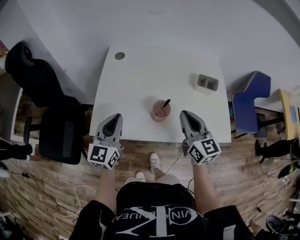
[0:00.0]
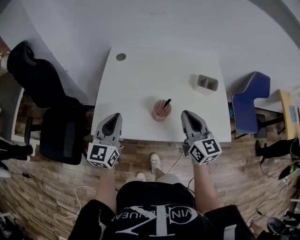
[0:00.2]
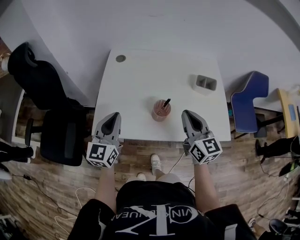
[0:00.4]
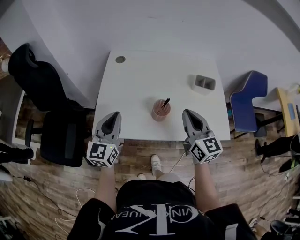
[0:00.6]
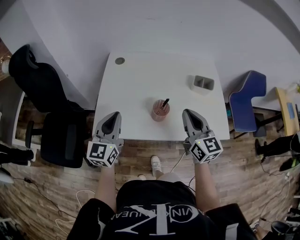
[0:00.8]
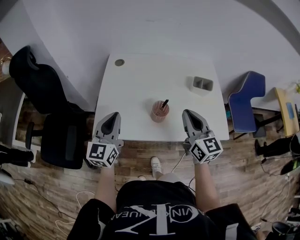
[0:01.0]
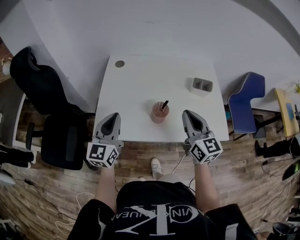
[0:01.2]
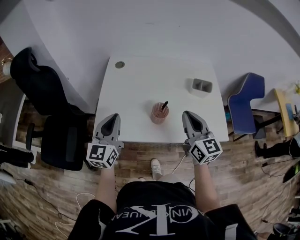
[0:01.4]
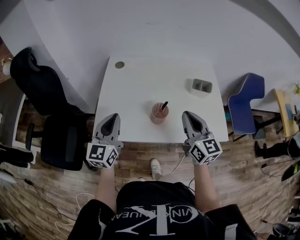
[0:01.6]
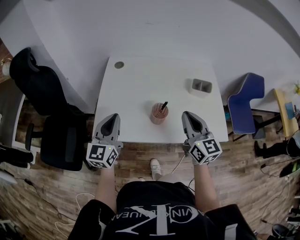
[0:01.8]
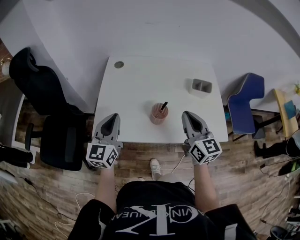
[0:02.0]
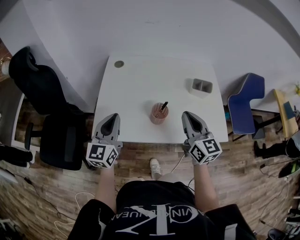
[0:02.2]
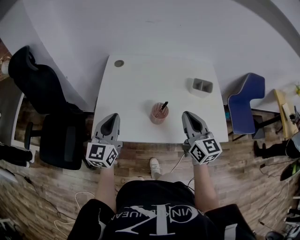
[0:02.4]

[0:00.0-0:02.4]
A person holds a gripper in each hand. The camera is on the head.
0:00.0 to 0:01.2: The grippers stay close to where they were, moving slightly.
0:01.2 to 0:02.4: Both grippers stay put.

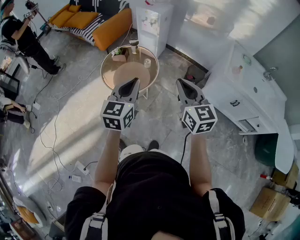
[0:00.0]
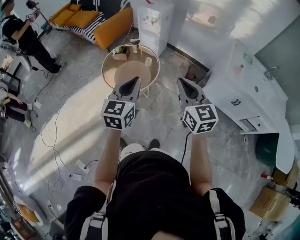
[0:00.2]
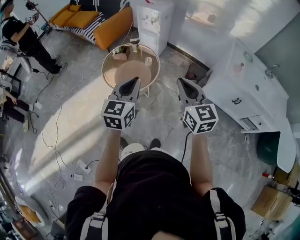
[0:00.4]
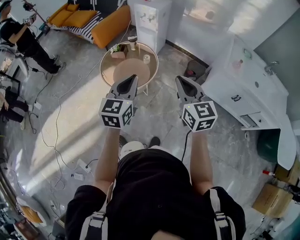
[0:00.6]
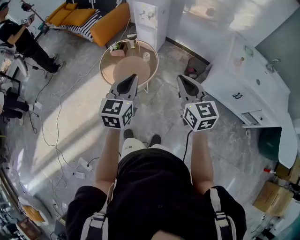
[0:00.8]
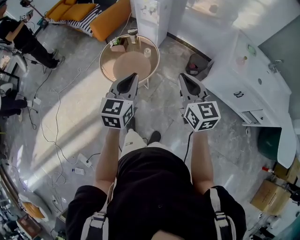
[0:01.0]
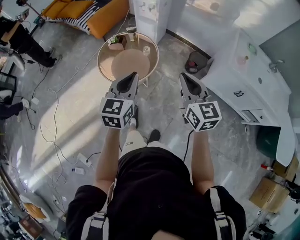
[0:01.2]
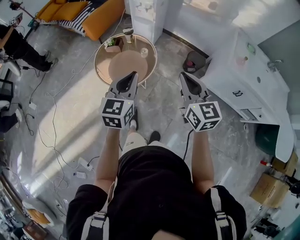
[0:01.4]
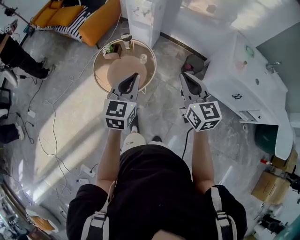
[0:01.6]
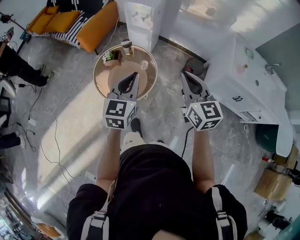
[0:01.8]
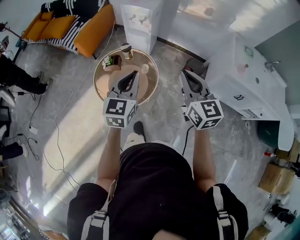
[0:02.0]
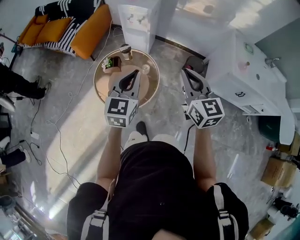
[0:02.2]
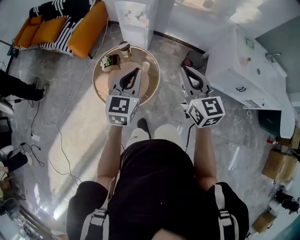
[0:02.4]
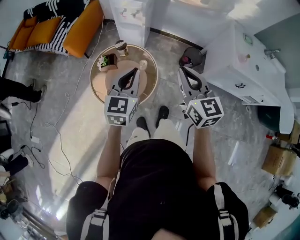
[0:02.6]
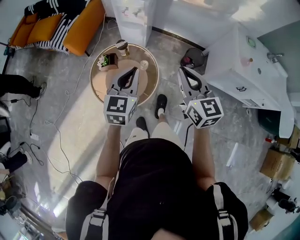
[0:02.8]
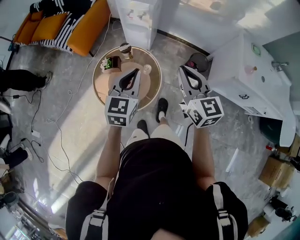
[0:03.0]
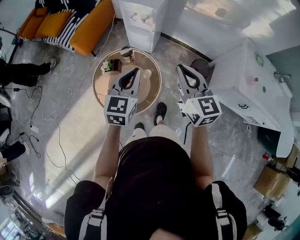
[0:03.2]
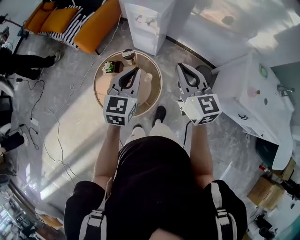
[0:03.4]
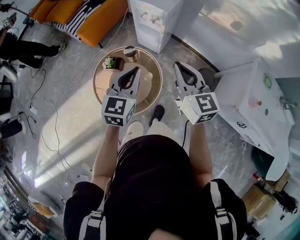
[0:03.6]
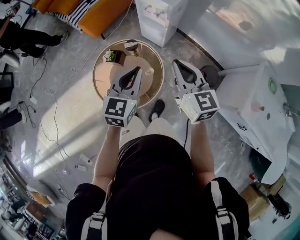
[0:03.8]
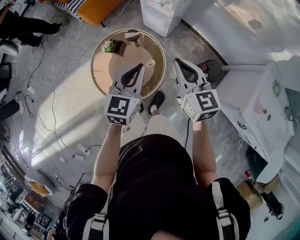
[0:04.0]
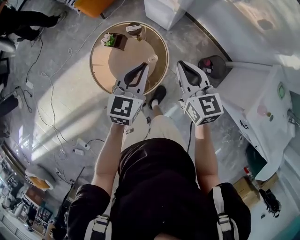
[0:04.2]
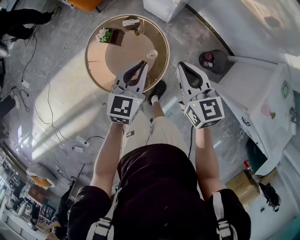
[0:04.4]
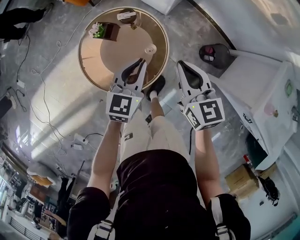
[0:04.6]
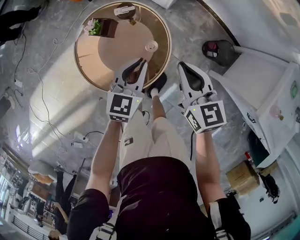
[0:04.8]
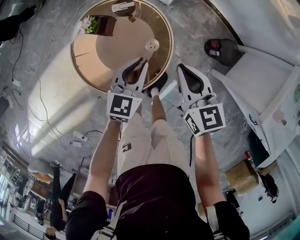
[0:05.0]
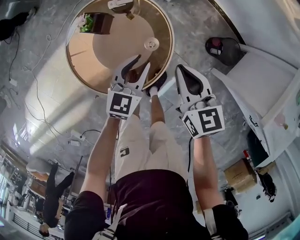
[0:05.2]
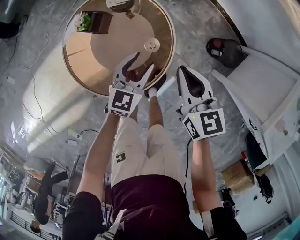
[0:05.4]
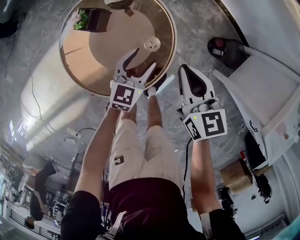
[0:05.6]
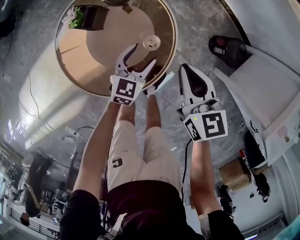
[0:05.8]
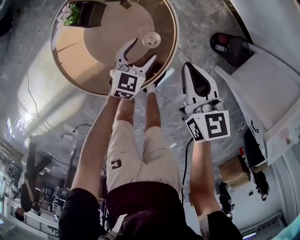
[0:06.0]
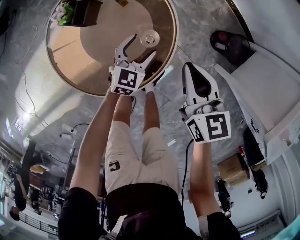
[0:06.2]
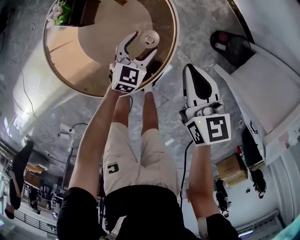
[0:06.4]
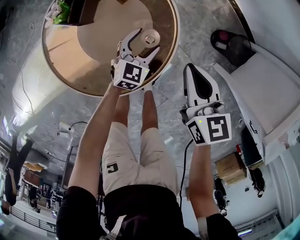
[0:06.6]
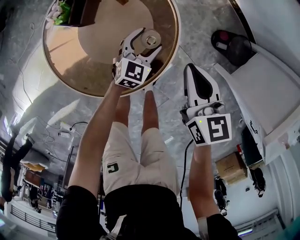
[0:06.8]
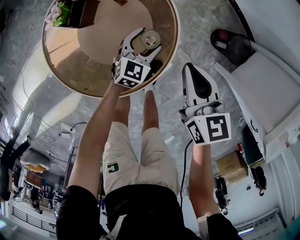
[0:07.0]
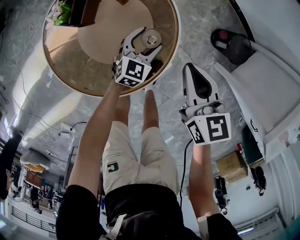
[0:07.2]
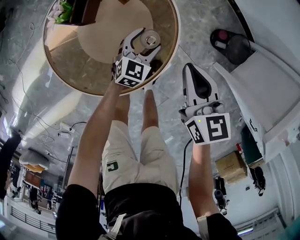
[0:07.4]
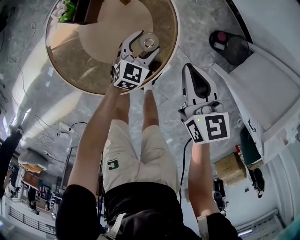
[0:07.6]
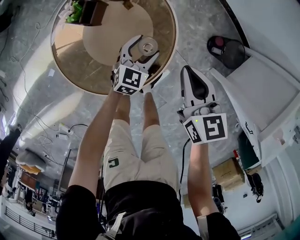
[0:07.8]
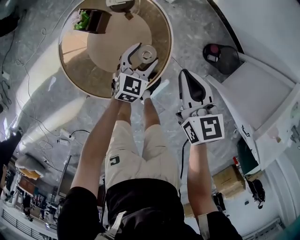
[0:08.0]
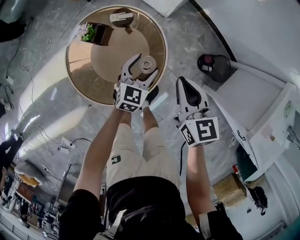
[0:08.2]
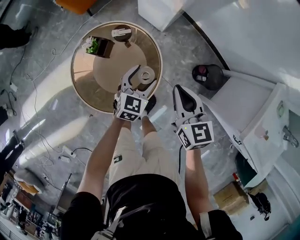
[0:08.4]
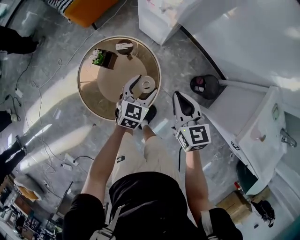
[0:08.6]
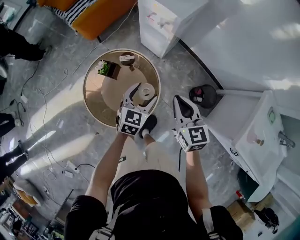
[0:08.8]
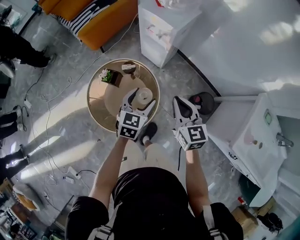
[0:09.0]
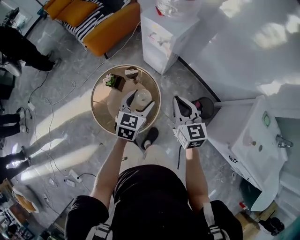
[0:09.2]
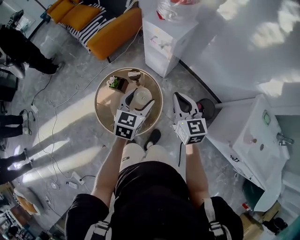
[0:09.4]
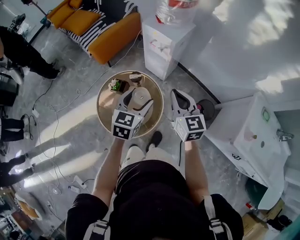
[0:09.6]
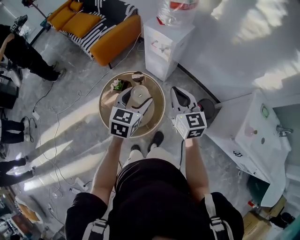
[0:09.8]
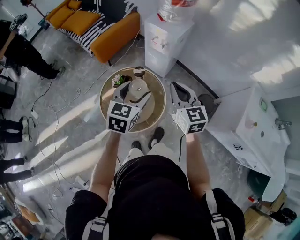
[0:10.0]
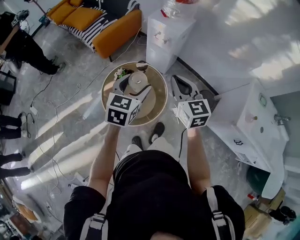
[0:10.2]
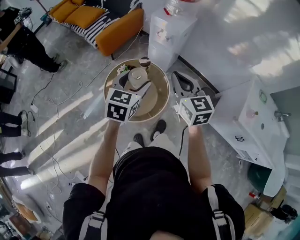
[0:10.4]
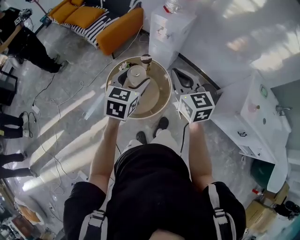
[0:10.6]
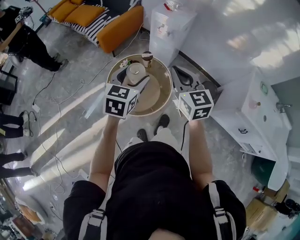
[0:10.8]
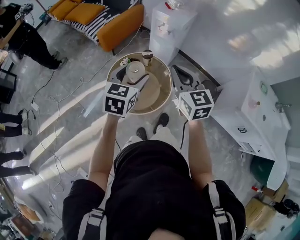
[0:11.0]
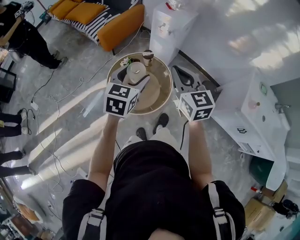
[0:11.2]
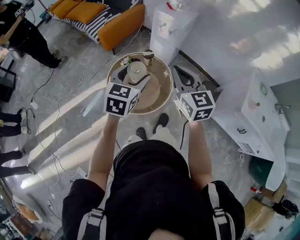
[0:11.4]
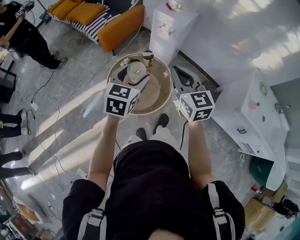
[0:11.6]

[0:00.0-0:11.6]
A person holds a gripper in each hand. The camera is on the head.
0:00.0 to 0:01.4: Both grippers move forward, about 5 cm.
0:01.4 to 0:02.8: The left gripper is displaced forward by approximately 25 cm; the right gripper shifts about 20 cm forward and to the left.
0:02.8 to 0:04.4: The right gripper goes some 25 cm forward and downward, and rotates about 30 degrees; the left gripper heads downward and forward, covering roughly 20 cm.
0:04.4 to 0:05.8: The left gripper heads downward, covering about 30 cm, and opens up; the right gripper heads downward, covering roughly 20 cm.
0:05.8 to 0:07.2: The left gripper heads downward, covering approximately 10 cm. The right gripper changes place by approximately 5 cm.
0:07.2 to 0:08.8: Both grippers move upward, about 30 cm.
0:08.8 to 0:10.2: Both grippers move upward, to the left and backward, about 25 cm.
0:10.2 to 0:11.6: The right gripper heads backward and to the left, covering approximately 10 cm, while the left gripper is displaced to the left and backward by about 10 cm.

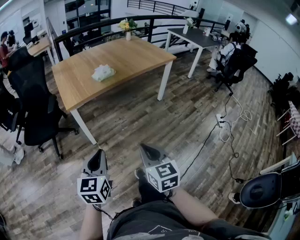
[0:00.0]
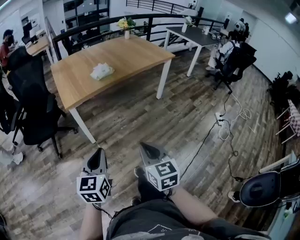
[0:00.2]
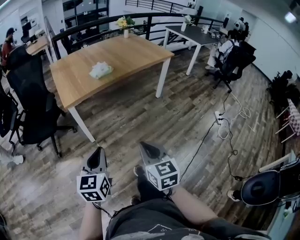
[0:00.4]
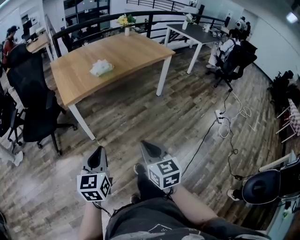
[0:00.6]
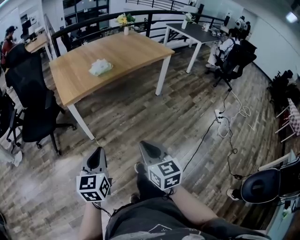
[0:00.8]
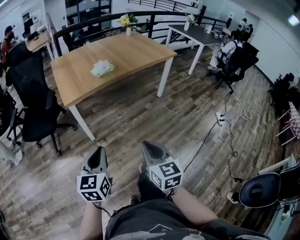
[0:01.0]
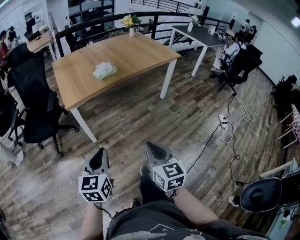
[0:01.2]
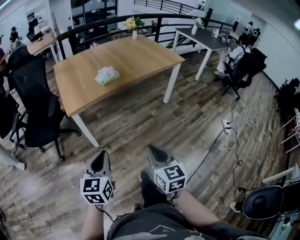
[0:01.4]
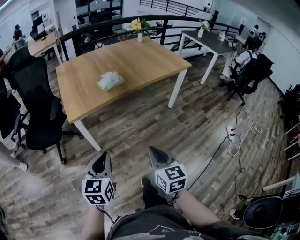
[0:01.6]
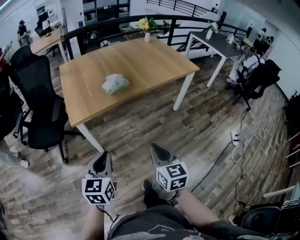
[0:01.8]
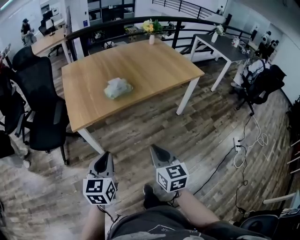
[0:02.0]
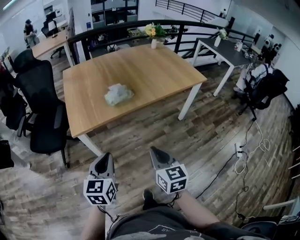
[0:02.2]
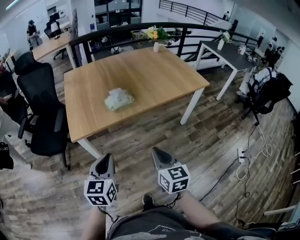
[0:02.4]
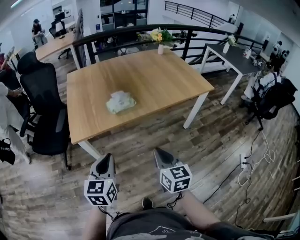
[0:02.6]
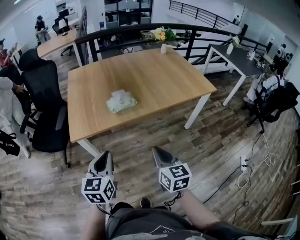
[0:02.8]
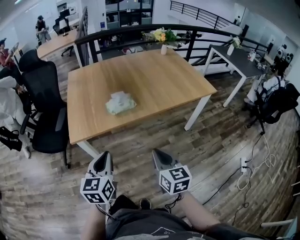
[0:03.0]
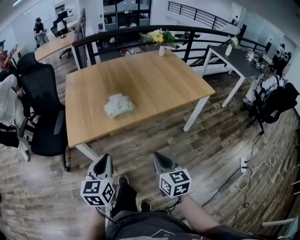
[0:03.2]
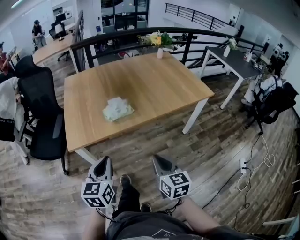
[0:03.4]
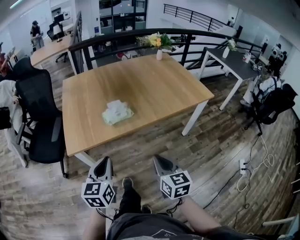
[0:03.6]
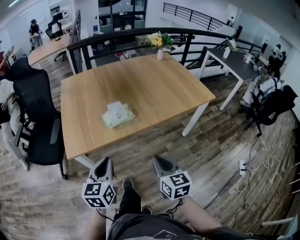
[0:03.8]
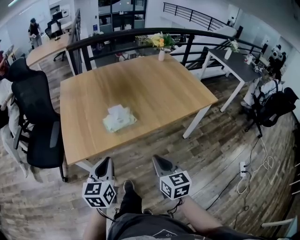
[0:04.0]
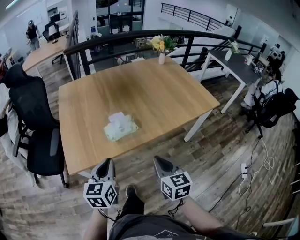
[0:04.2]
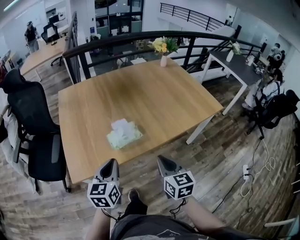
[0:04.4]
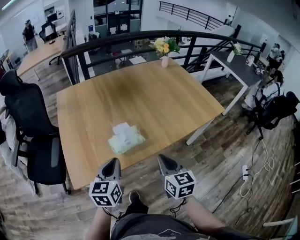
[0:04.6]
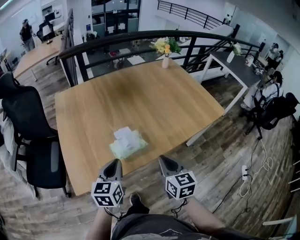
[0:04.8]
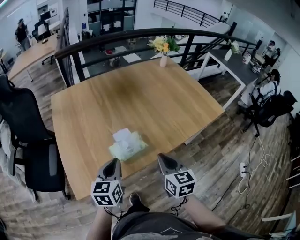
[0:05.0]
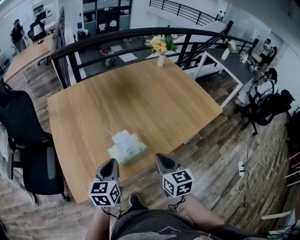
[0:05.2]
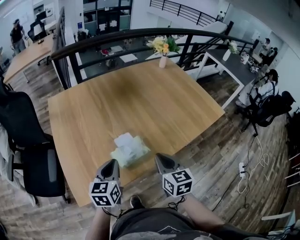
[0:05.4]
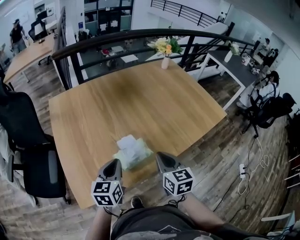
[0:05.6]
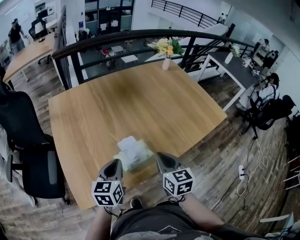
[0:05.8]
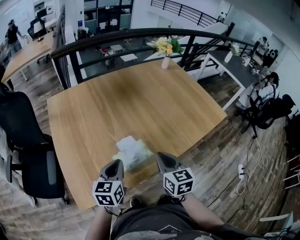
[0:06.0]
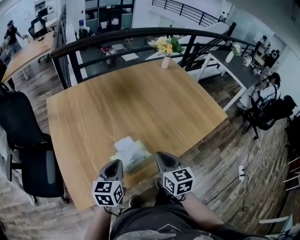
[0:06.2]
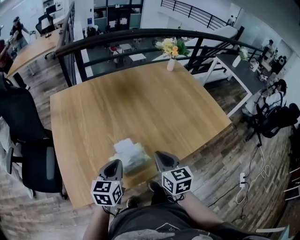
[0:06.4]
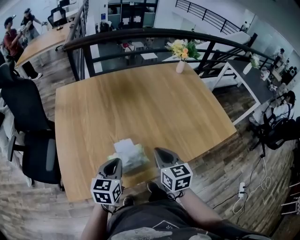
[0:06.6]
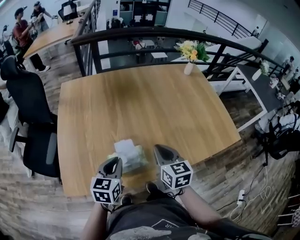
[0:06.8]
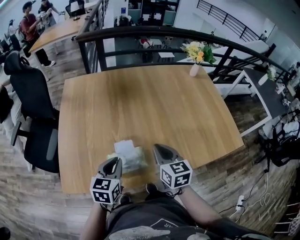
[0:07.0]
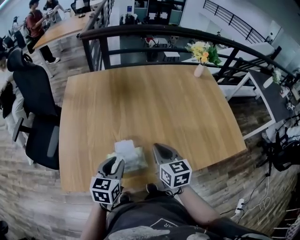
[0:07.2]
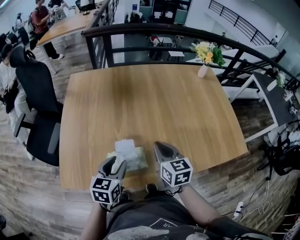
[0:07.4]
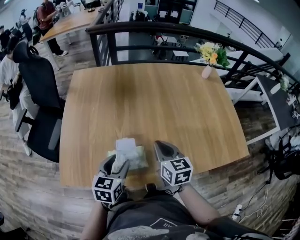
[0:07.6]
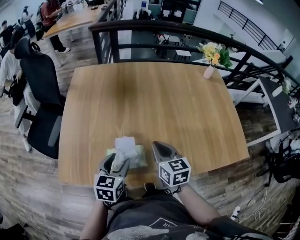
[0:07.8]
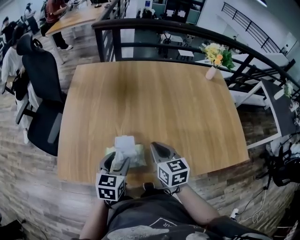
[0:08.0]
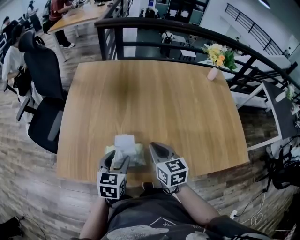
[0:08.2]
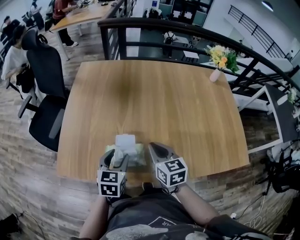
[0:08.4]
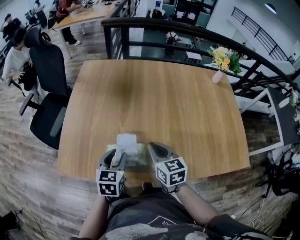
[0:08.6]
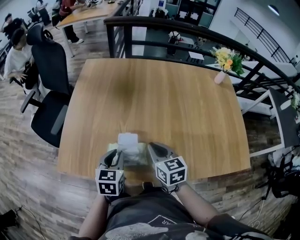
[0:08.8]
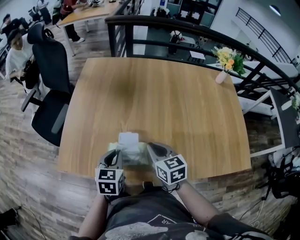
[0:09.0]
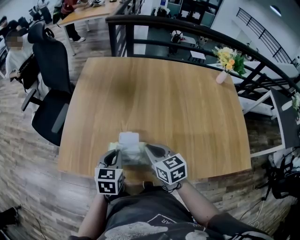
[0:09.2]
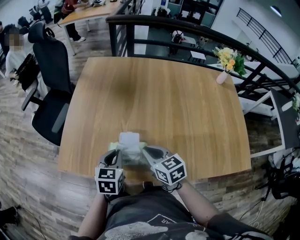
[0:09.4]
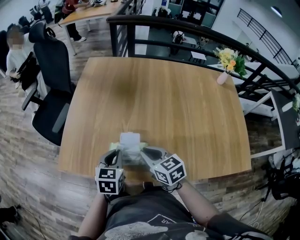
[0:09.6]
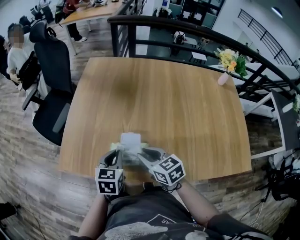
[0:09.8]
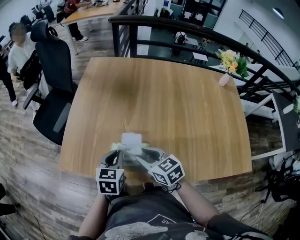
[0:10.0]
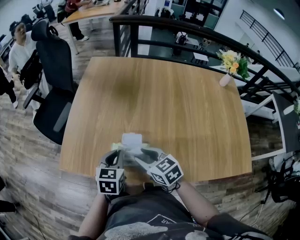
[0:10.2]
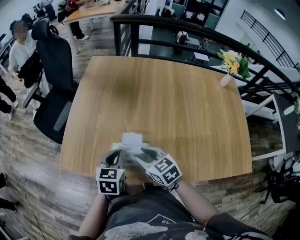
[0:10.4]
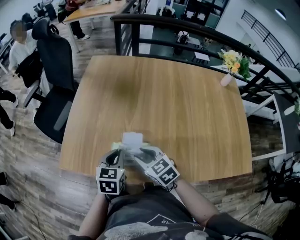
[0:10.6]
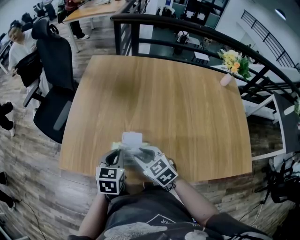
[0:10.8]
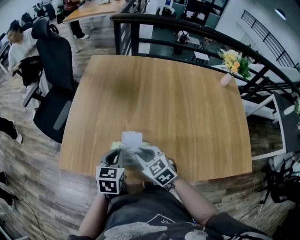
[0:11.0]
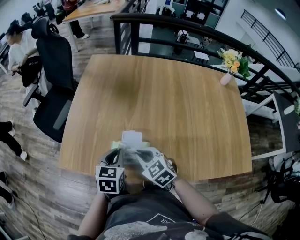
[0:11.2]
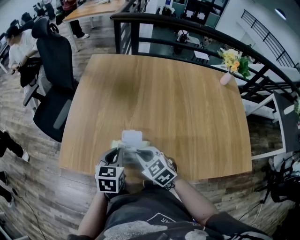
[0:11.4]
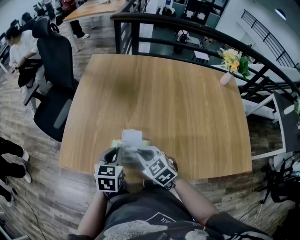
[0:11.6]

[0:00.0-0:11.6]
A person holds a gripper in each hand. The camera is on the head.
0:00.0 to 0:01.4: Both grippers travel together forward, roughly 10 cm.
0:01.4 to 0:02.8: Both grippers move forward, approximately 25 cm.
0:02.8 to 0:04.4: The two grippers go approximately 20 cm forward.
0:04.4 to 0:05.8: The left gripper heads forward, covering roughly 15 cm; the right gripper is displaced forward and to the left by about 15 cm.
0:05.8 to 0:07.2: The left gripper travels to the right by about 5 cm. The right gripper goes roughly 10 cm forward, and swivels roughly 20 degrees.
0:07.2 to 0:08.8: The left gripper opens, then closes again.
0:08.8 to 0:10.2: The right gripper is displaced to the left by some 10 cm, changes its angle by some 30 degrees, and opens.
0:10.2 to 0:11.6: The right gripper closes.
